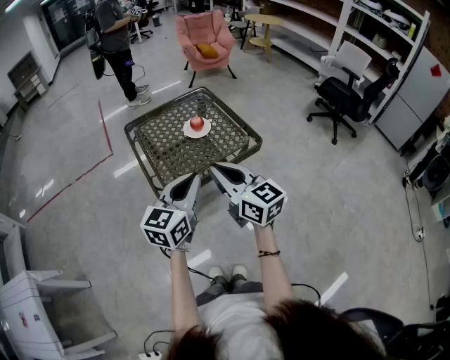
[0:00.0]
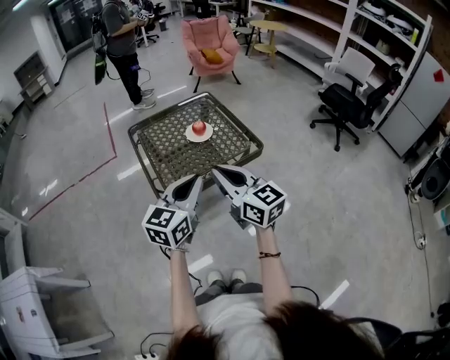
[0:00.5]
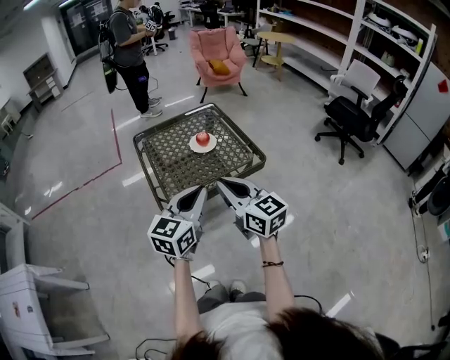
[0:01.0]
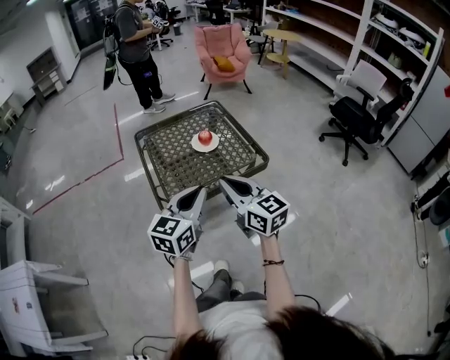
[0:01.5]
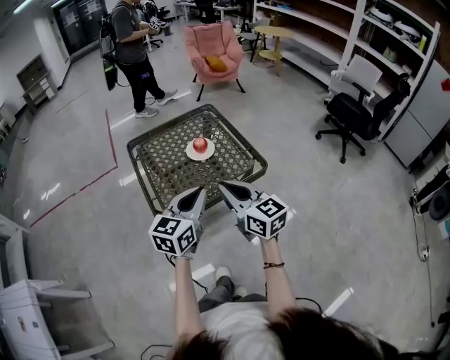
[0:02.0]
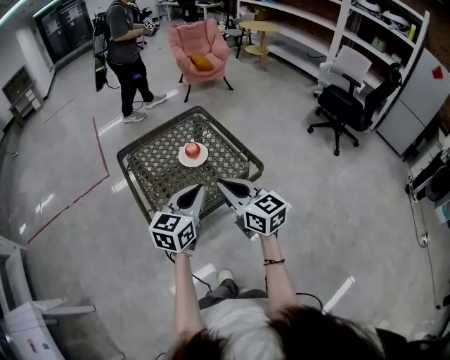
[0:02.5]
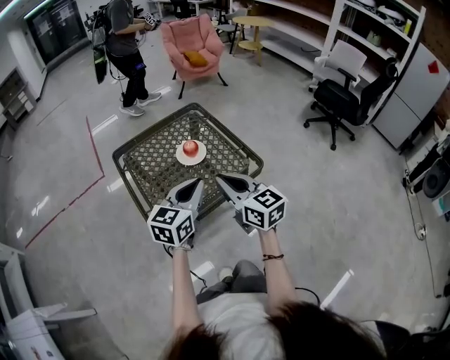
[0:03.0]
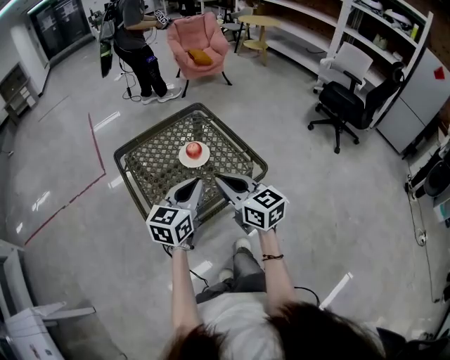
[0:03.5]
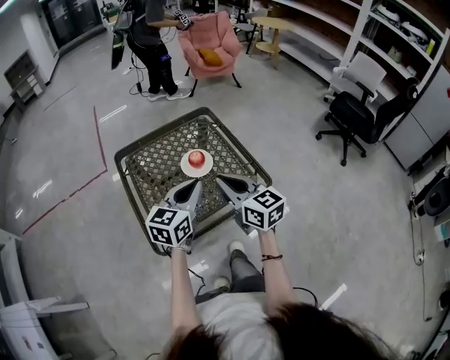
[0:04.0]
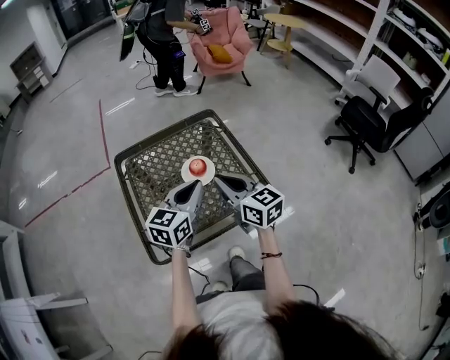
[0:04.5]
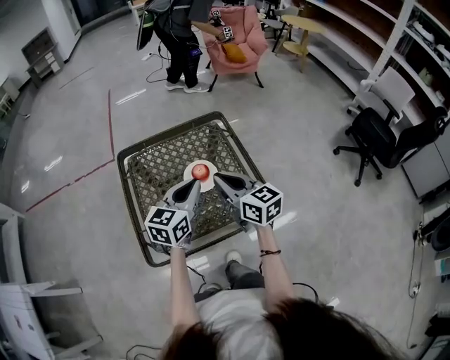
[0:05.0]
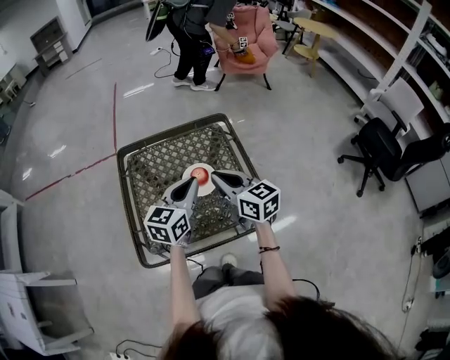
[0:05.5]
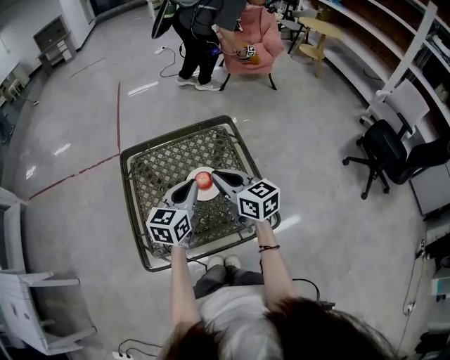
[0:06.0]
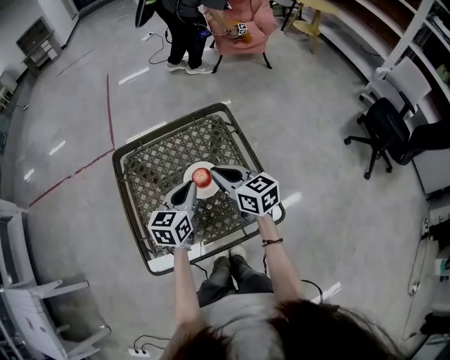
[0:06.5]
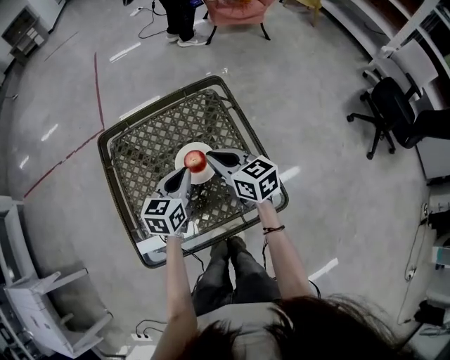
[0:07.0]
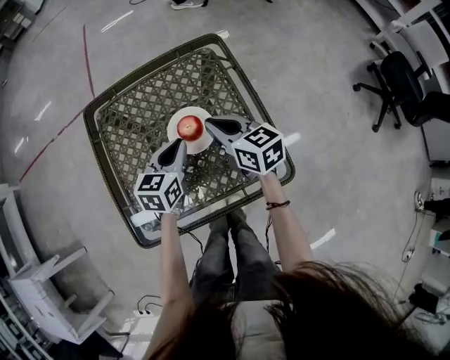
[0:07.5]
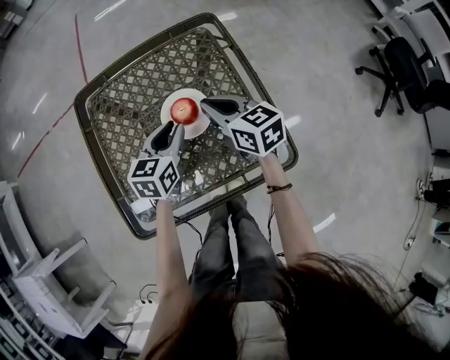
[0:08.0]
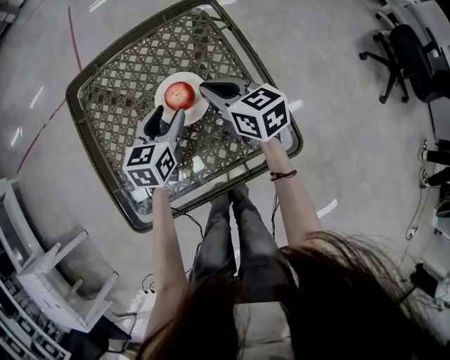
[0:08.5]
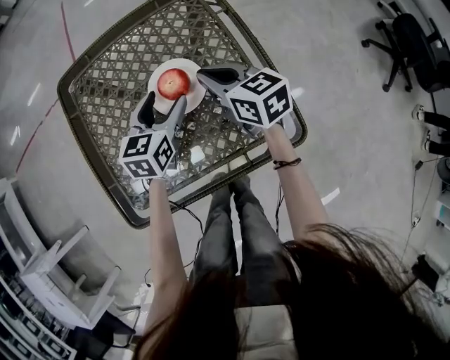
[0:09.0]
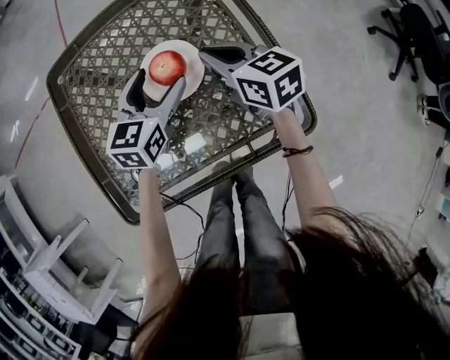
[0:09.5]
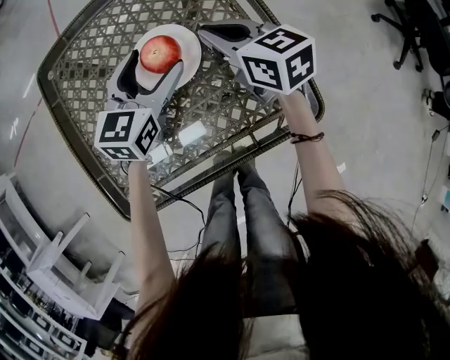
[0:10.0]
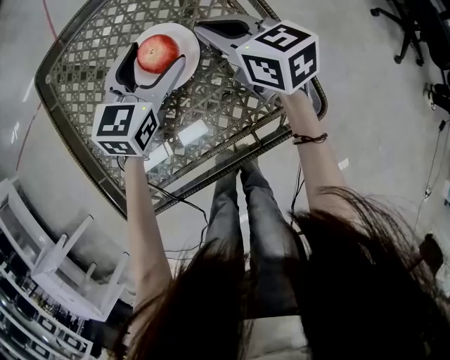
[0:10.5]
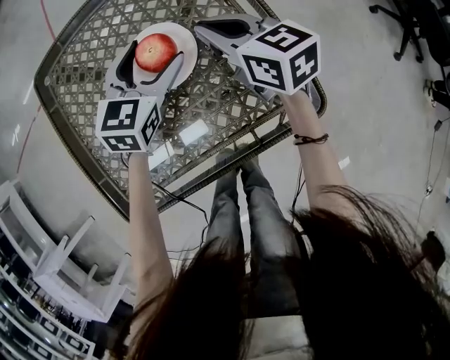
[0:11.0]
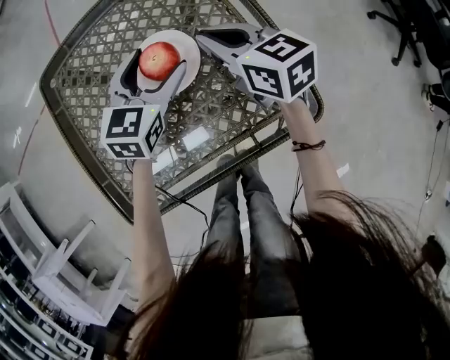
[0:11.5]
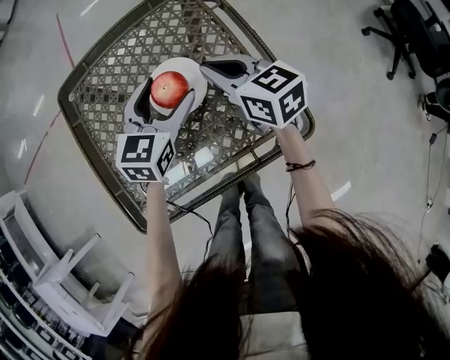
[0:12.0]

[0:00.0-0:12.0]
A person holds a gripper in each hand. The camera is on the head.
0:00.0 to 0:02.0: Both grippers move forward, roughly 10 cm.
0:02.0 to 0:04.0: The two grippers go approximately 15 cm forward.
0:04.0 to 0:06.0: The grippers both shift forward by roughly 15 cm.
0:06.0 to 0:08.0: The right gripper moves downward and forward, approximately 15 cm; the left gripper goes about 20 cm downward.
0:08.0 to 0:10.0: The left gripper moves about 5 cm, and opens. The right gripper goes approximately 5 cm downward.
0:10.0 to 0:12.0: The right gripper shifts by some 5 cm.

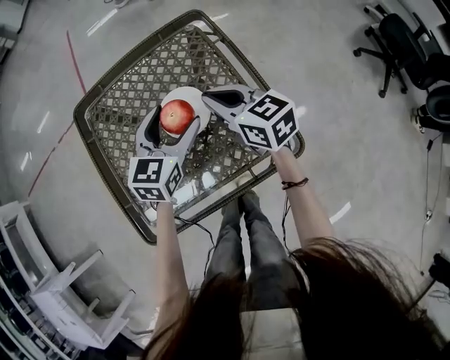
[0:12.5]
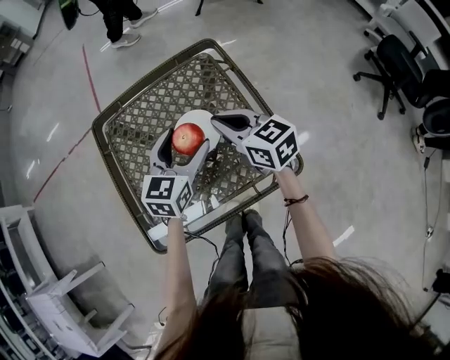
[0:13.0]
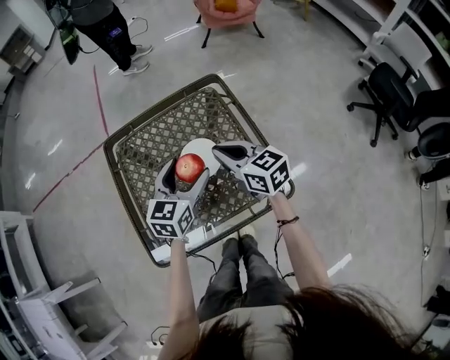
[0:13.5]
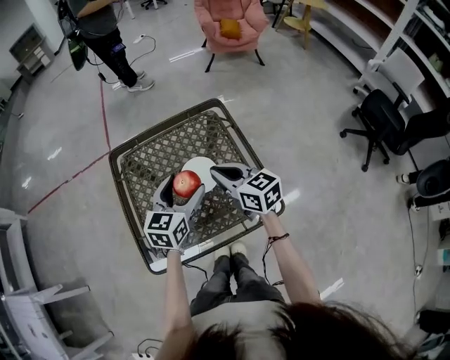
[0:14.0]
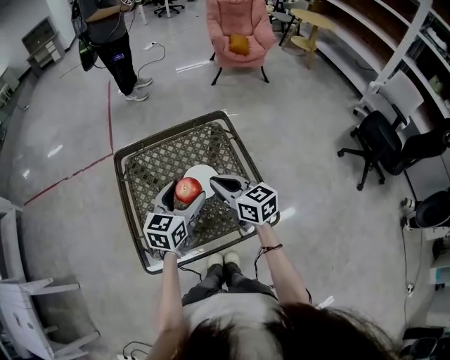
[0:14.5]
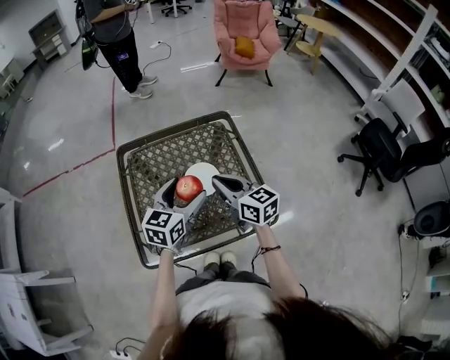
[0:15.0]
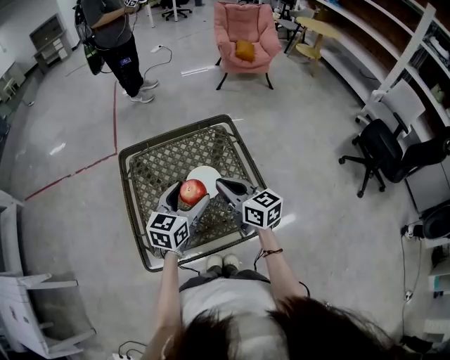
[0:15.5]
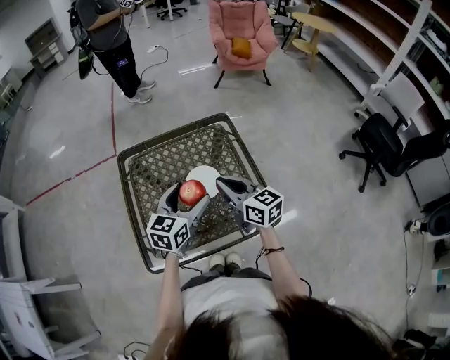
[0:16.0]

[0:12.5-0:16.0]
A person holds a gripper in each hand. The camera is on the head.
0:12.5 to 0:14.5: Both grippers travel together upward and backward, roughly 10 cm.
0:14.5 to 0:16.0: The grippers move only a little.

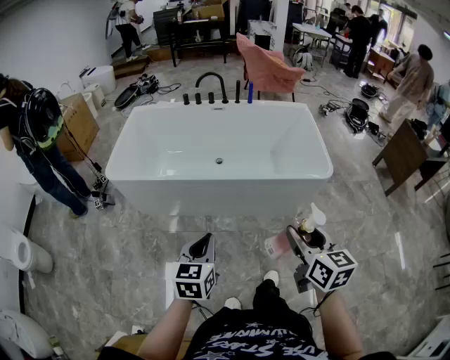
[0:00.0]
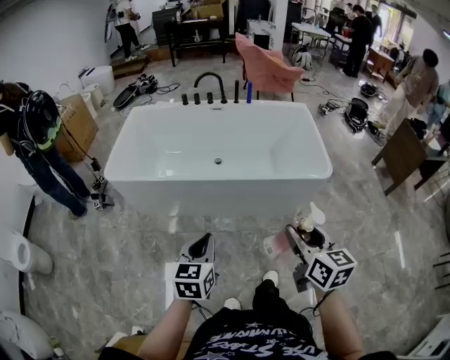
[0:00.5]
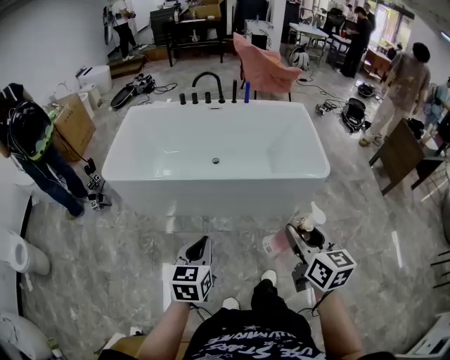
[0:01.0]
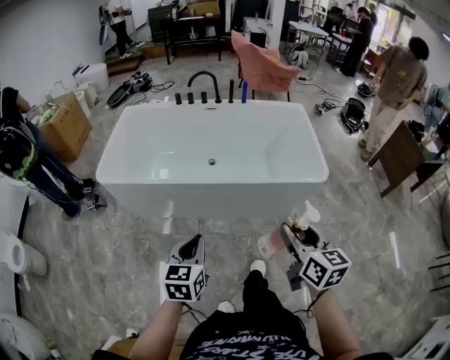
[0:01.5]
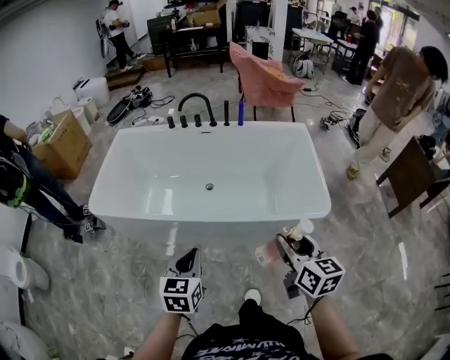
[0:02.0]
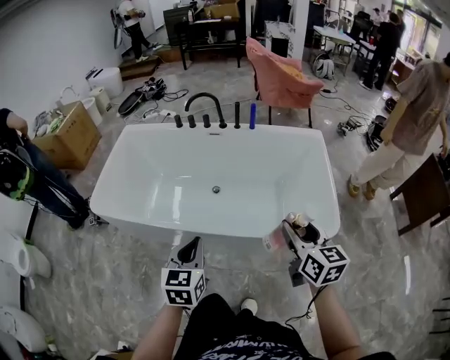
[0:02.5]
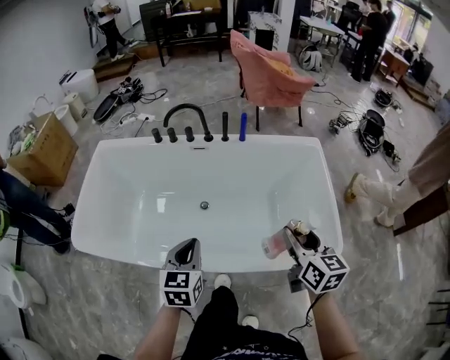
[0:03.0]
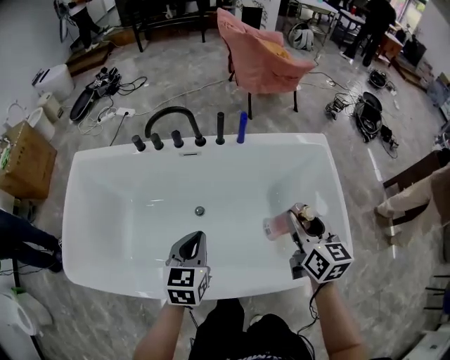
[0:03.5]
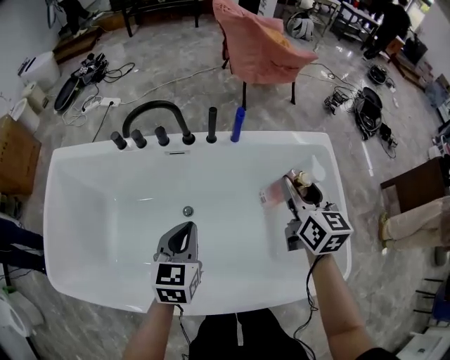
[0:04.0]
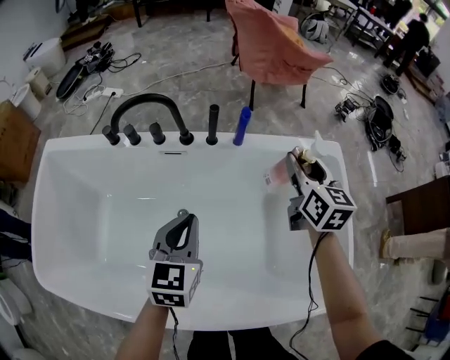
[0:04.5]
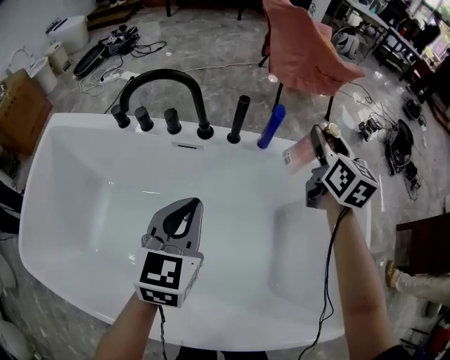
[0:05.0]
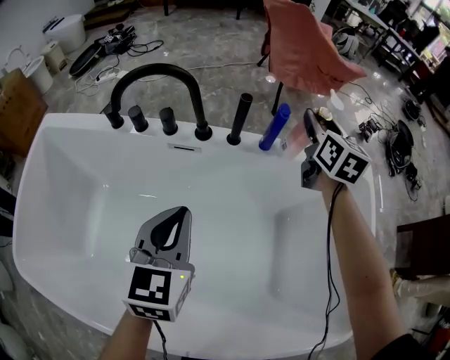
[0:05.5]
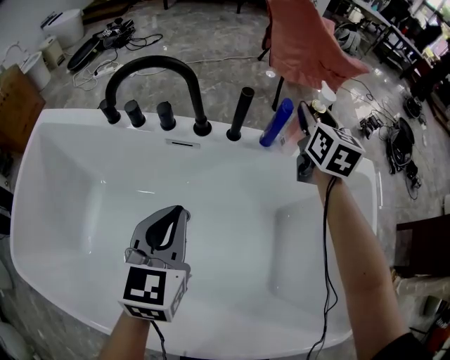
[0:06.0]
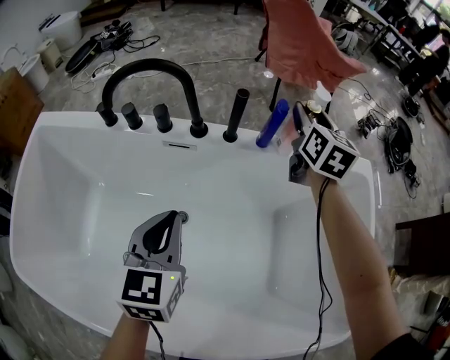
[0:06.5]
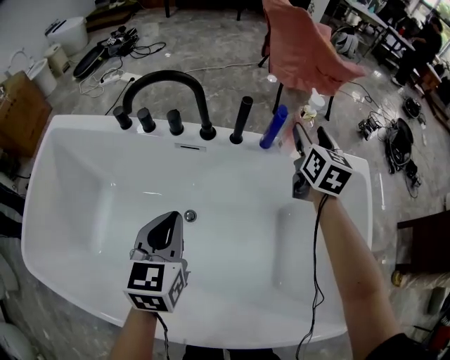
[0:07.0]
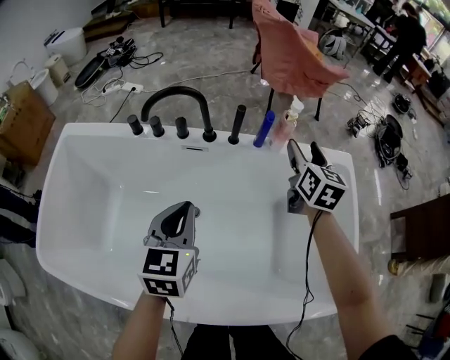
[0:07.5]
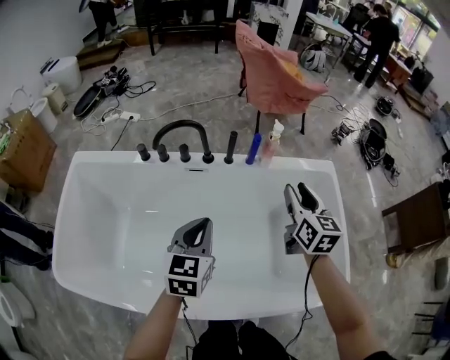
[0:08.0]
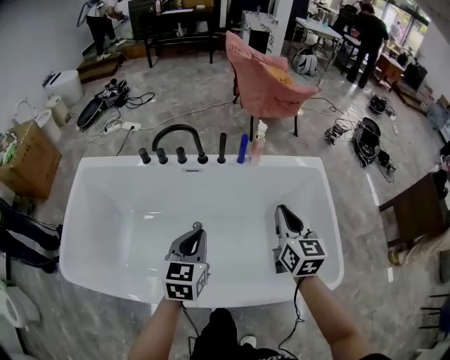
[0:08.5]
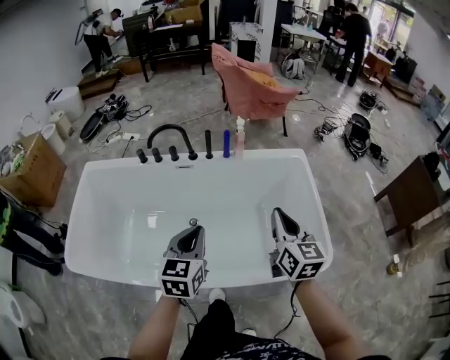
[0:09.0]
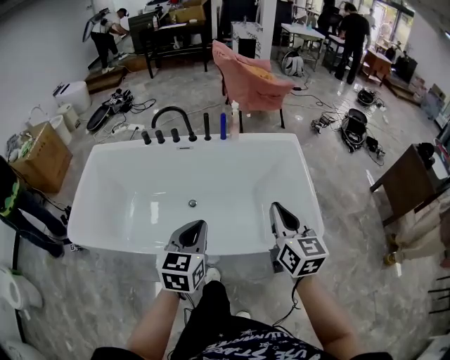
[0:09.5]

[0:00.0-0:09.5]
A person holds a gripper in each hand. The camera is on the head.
0:00.0 to 0:02.0: Both grippers move forward, roughly 20 cm.
0:02.0 to 0:04.0: The pair of grippers is taken forward, approximately 60 cm.
0:04.0 to 0:05.5: The left gripper heads forward and downward, covering about 15 cm. Meanwhile the right gripper shifts some 30 cm forward and downward.
0:05.5 to 0:07.5: The left gripper heads upward and backward, covering about 10 cm; the right gripper heads backward and upward, covering about 15 cm.
0:07.5 to 0:09.5: The two grippers travel together, backward, roughly 50 cm. The left gripper shifts roughly 15 cm upward. Meanwhile the right gripper closes.

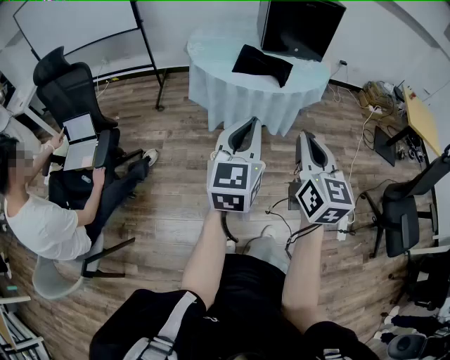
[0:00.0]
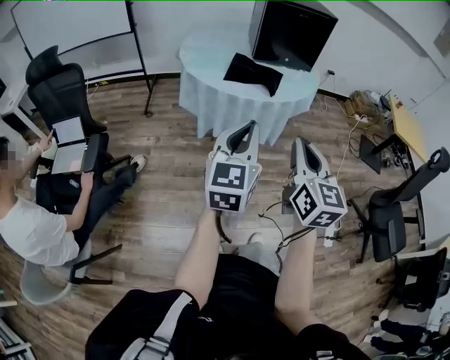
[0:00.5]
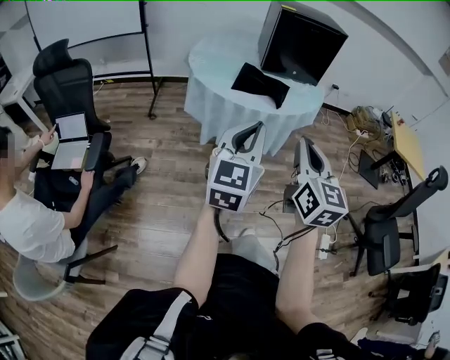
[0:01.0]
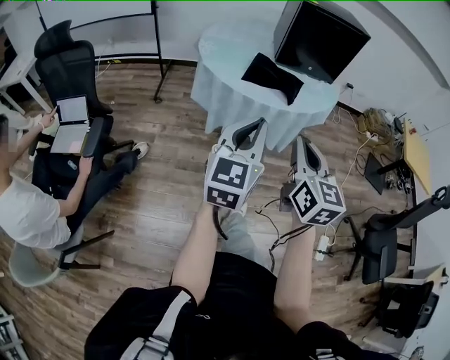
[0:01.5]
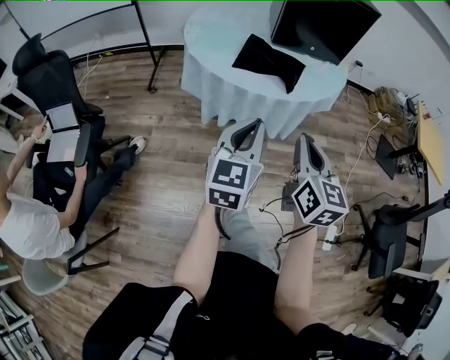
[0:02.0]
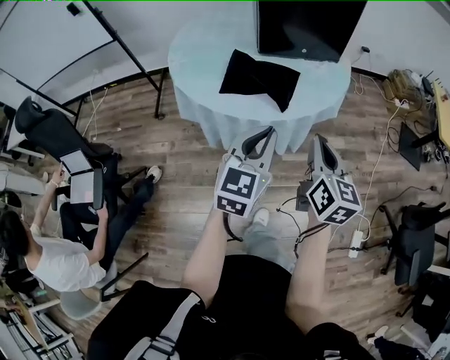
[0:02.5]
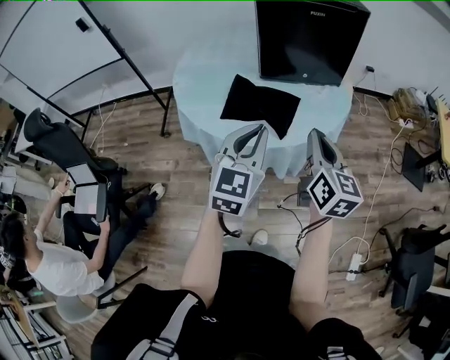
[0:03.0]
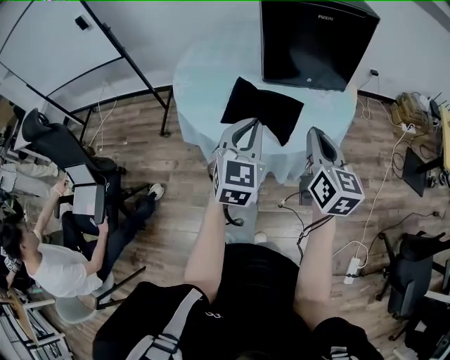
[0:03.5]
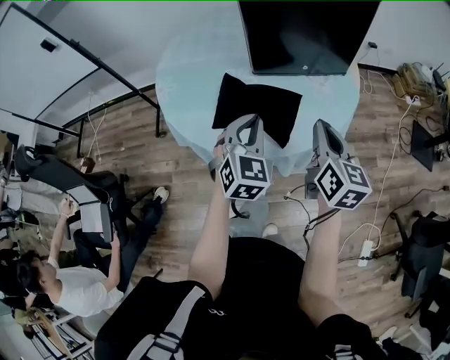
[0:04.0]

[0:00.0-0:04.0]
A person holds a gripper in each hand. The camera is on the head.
0:00.0 to 0:02.0: Both grippers travel together forward and downward, roughly 20 cm.
0:02.0 to 0:04.0: The grippers both shift forward by some 30 cm. The left gripper turns by about 40 degrees.
